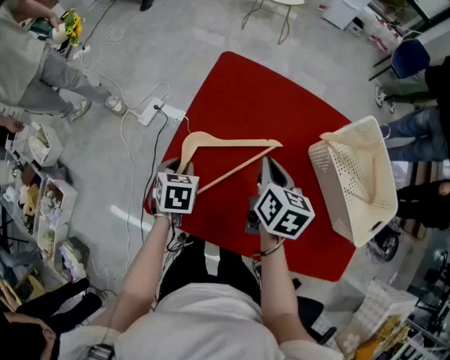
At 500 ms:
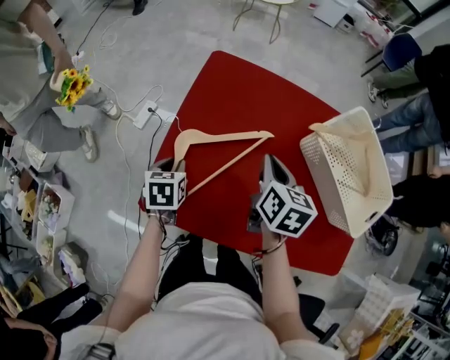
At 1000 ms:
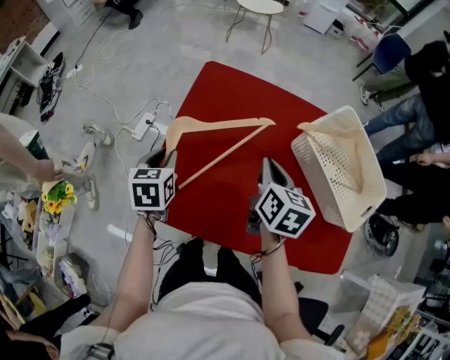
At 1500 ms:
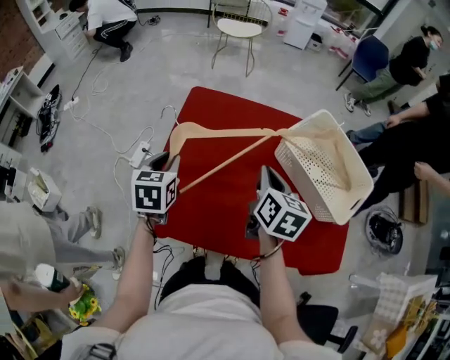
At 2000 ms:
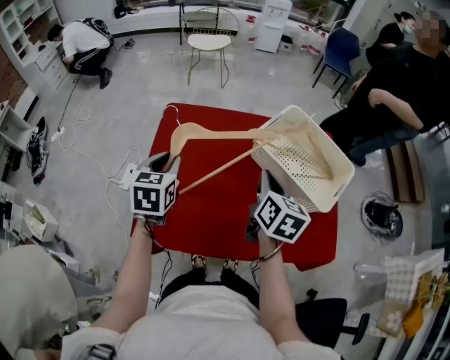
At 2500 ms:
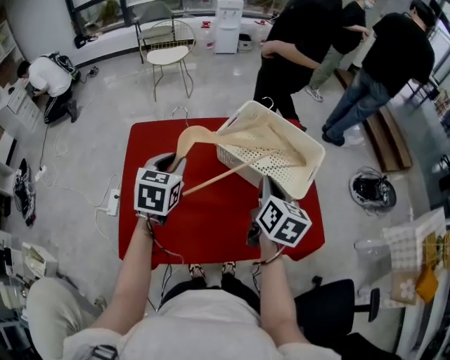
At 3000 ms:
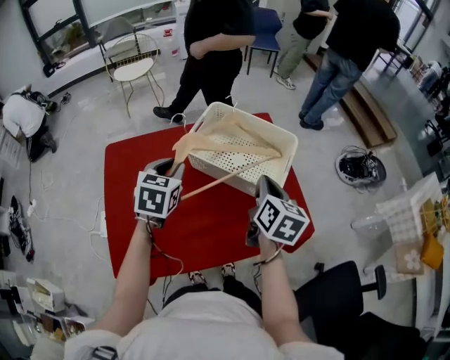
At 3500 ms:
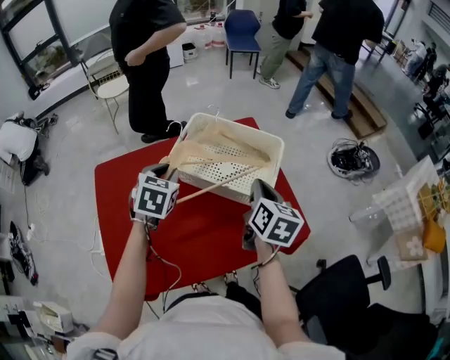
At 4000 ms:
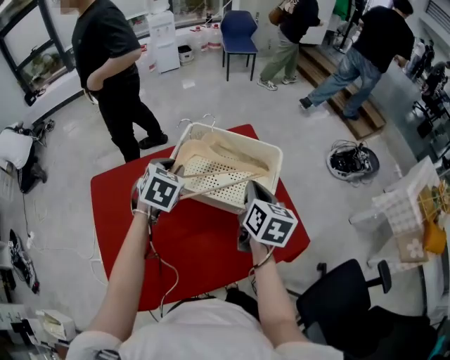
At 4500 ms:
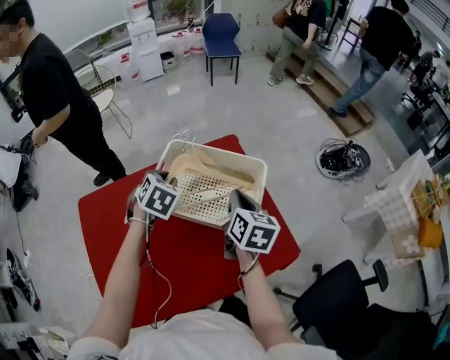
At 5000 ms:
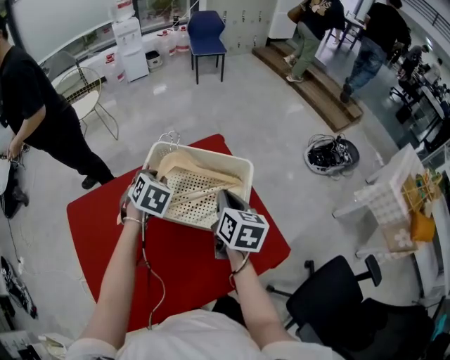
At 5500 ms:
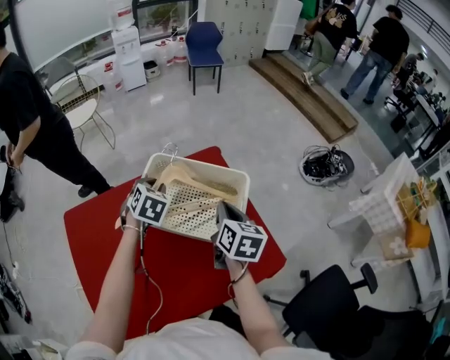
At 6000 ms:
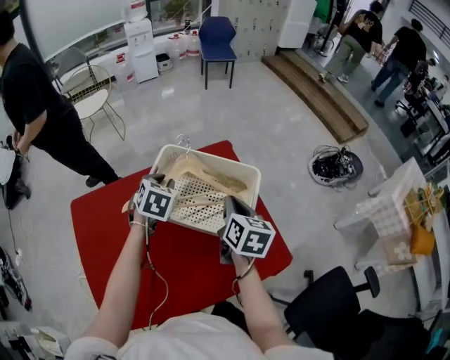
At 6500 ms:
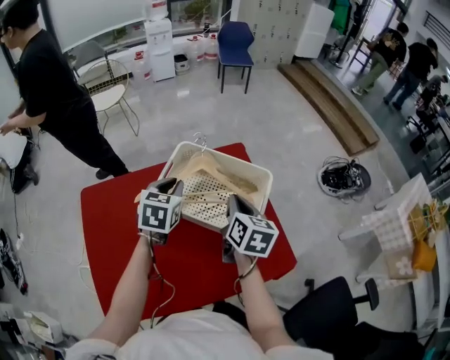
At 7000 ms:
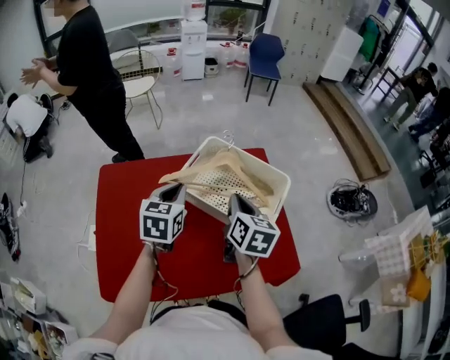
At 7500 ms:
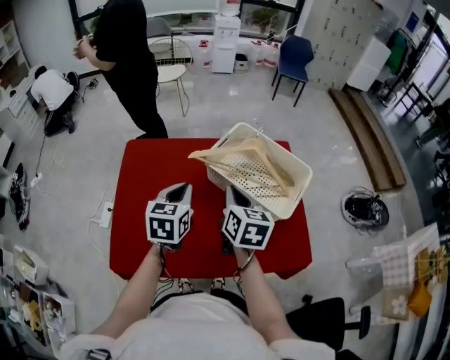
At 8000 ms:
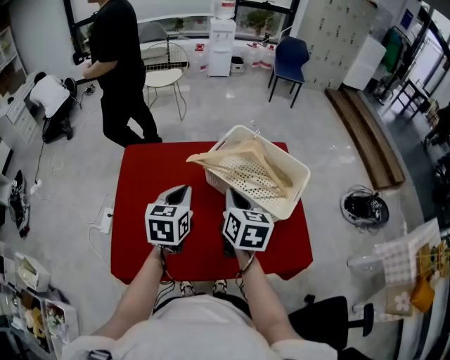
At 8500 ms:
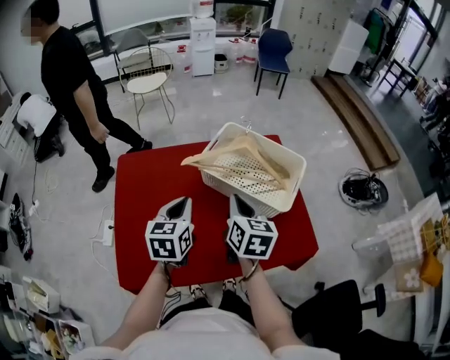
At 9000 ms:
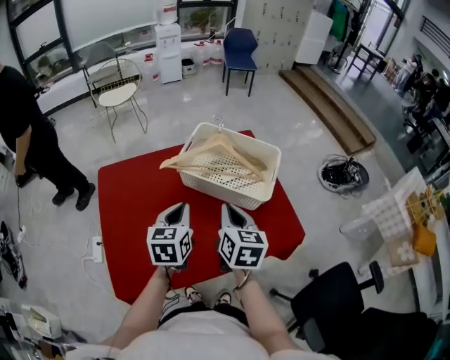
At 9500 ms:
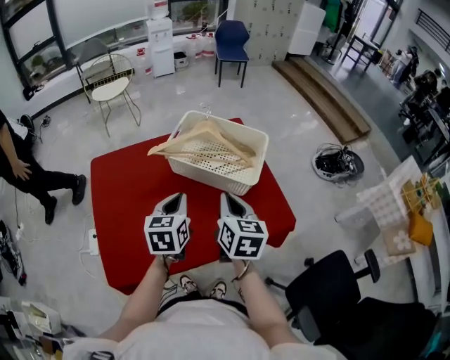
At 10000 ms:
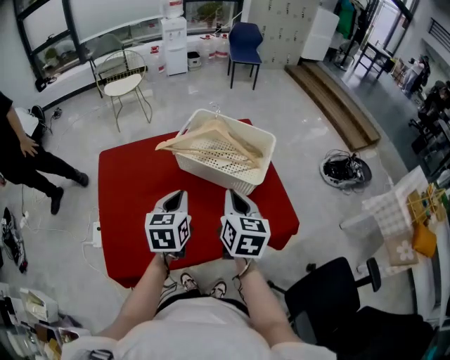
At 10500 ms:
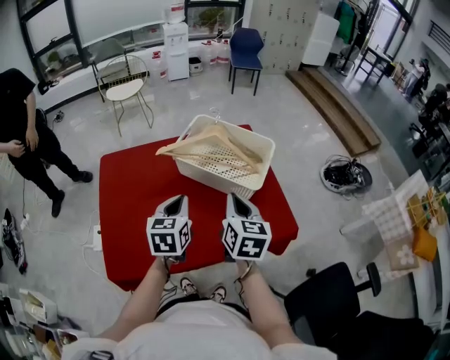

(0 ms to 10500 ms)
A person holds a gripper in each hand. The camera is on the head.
0 ms - 2000 ms: The left gripper heads upward and to the right, covering some 20 cm, and changes its angle by roughly 30 degrees. The right gripper moves to the right, upward and backward, approximately 20 cm, and changes its angle by approximately 20 degrees.
2000 ms - 4000 ms: The right gripper is displaced to the right by some 20 cm, and changes its angle by roughly 20 degrees. The left gripper goes some 30 cm to the right and forward, and rotates some 40 degrees.
6500 ms - 8500 ms: The left gripper heads backward and to the left, covering some 20 cm, and rotates roughly 20 degrees; the right gripper travels to the left and backward by some 20 cm.
8500 ms - 10500 ms: The left gripper moves to the right, about 10 cm. Meanwhile the right gripper moves to the right and backward, some 10 cm.

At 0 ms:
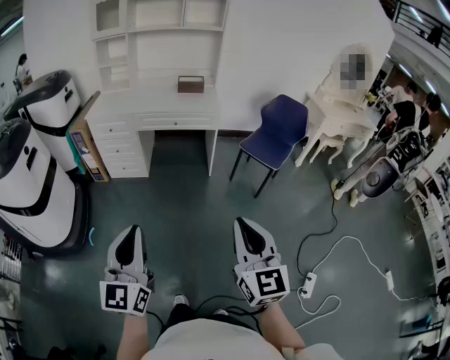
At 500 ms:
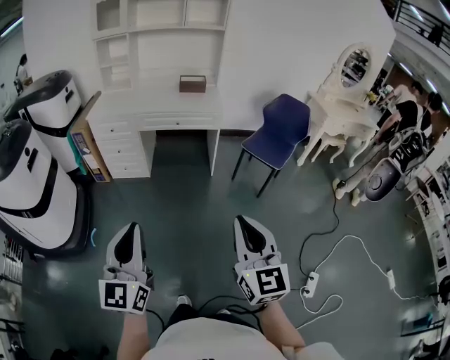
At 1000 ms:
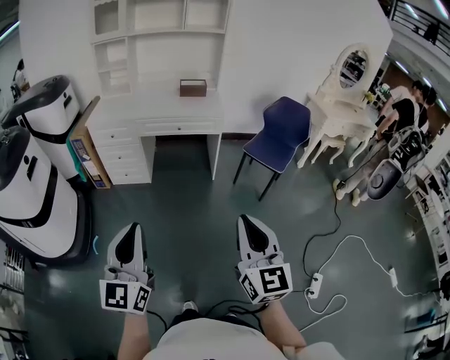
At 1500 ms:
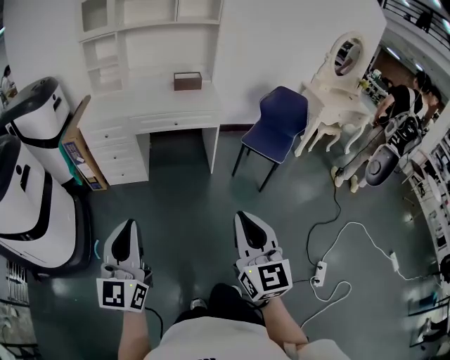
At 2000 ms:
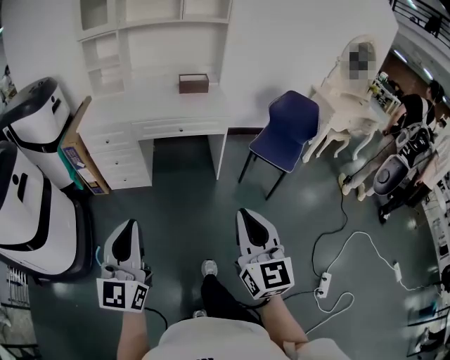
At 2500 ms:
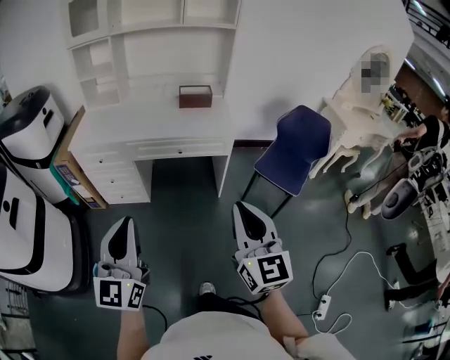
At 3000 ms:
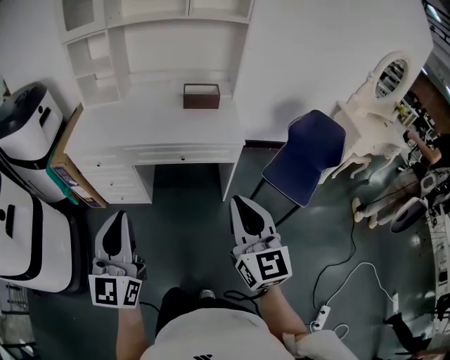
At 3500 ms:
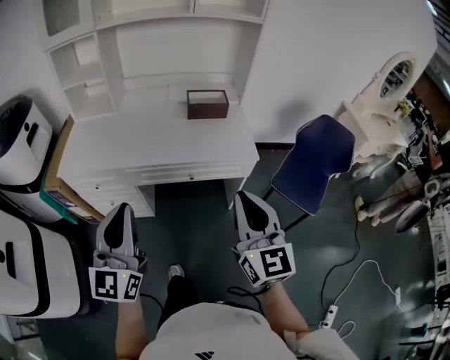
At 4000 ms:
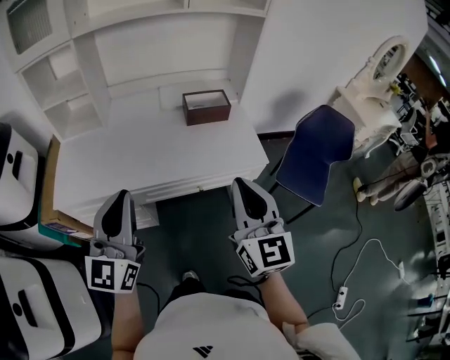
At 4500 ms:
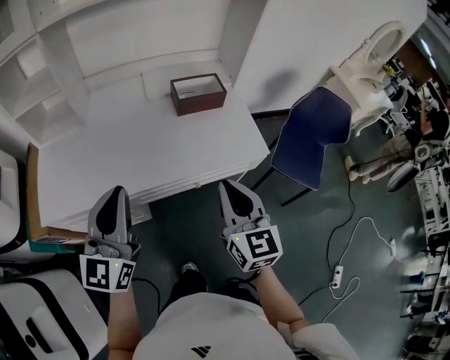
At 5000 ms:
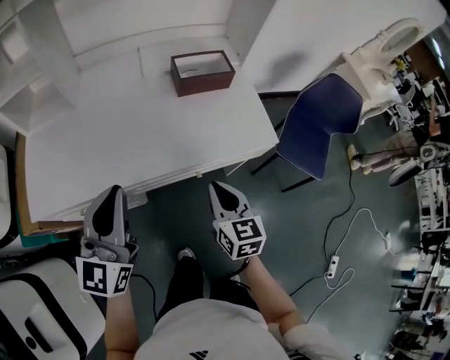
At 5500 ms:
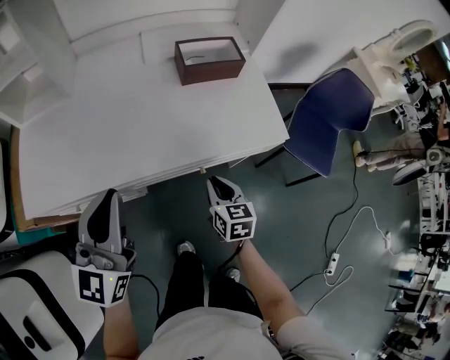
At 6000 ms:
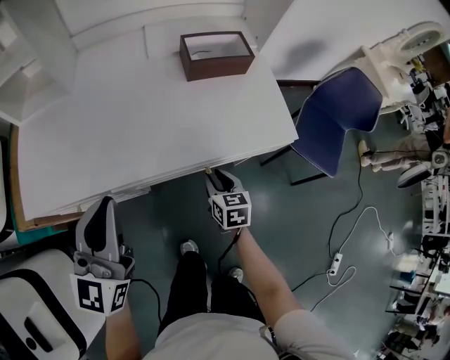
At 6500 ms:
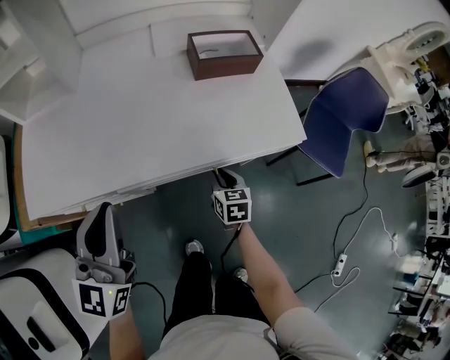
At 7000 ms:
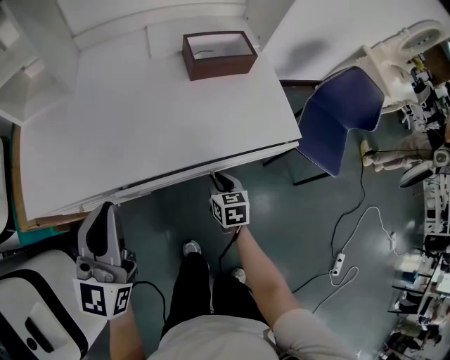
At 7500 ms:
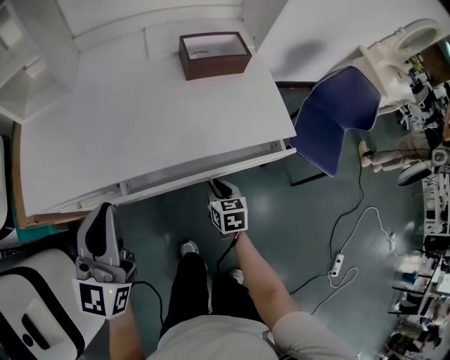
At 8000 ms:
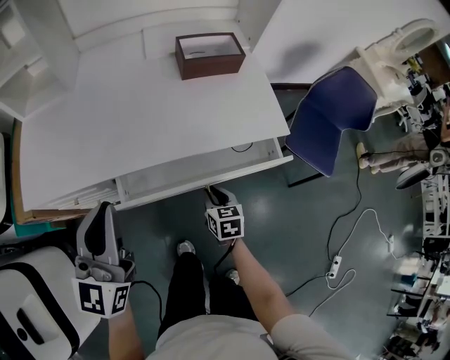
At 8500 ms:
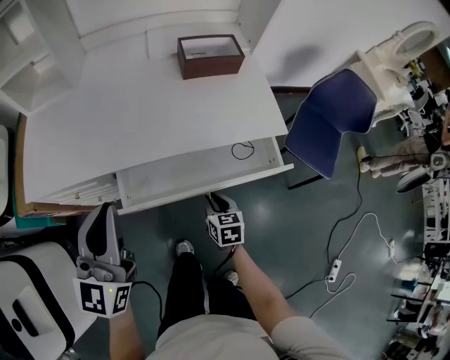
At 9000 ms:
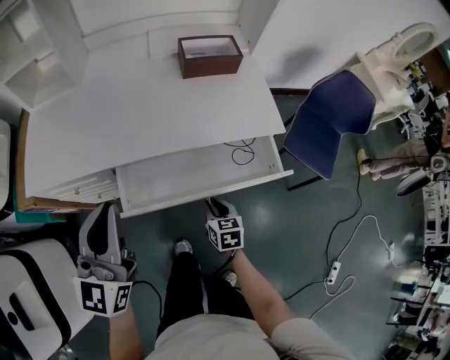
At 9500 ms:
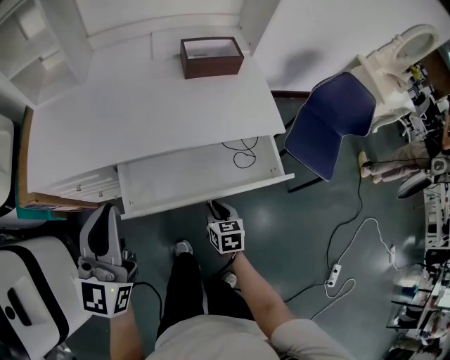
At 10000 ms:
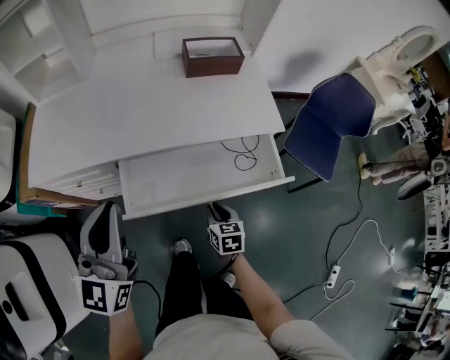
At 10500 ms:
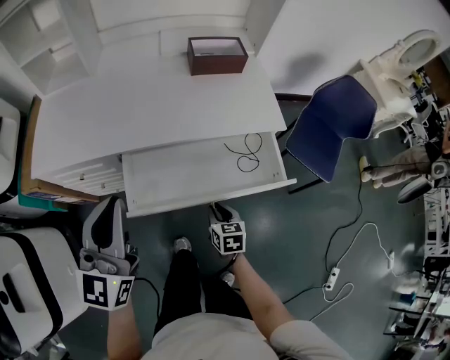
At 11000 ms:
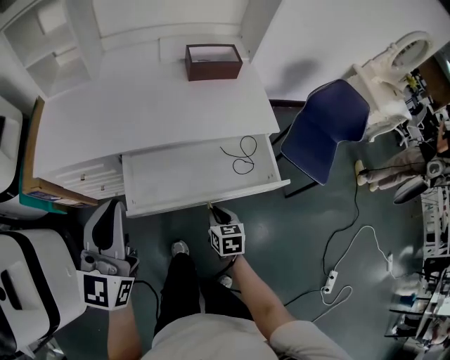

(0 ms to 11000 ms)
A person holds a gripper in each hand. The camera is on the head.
0 ms - 2000 ms: Both grippers travel together forward and to the left, some 20 cm.
2000 ms - 3500 ms: The pair of grippers is taken forward, roughly 40 cm.
3500 ms - 5500 ms: The right gripper shifts roughly 40 cm downward and forward, and tilts its fingers some 40 degrees downward. Meanwhile the left gripper goes some 25 cm forward and downward.
5500 ms - 7500 ms: The right gripper heads downward, covering some 10 cm.
7500 ms - 9000 ms: The left gripper heads backward, covering approximately 5 cm, while the right gripper heads backward, covering approximately 10 cm.
9000 ms - 11000 ms: The two grippers go approximately 5 cm backward.

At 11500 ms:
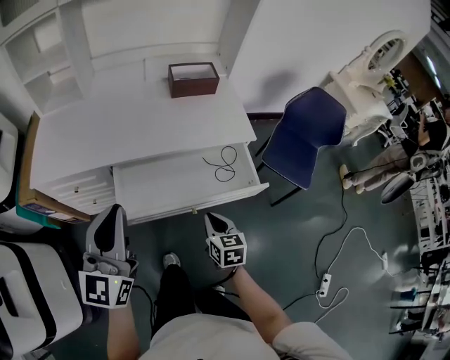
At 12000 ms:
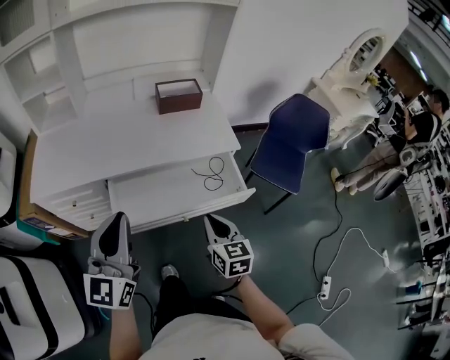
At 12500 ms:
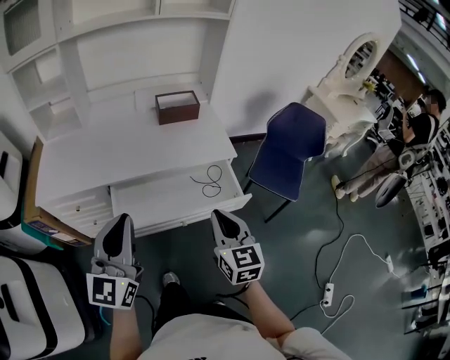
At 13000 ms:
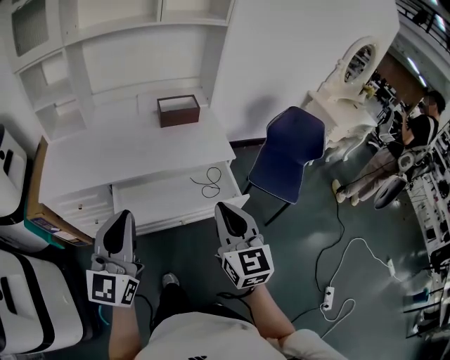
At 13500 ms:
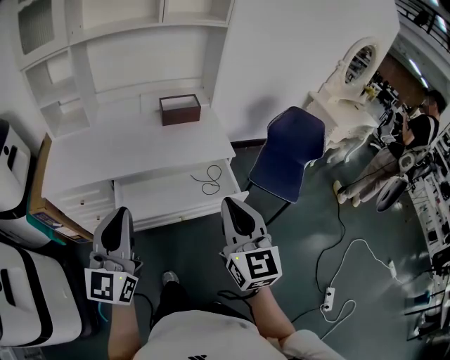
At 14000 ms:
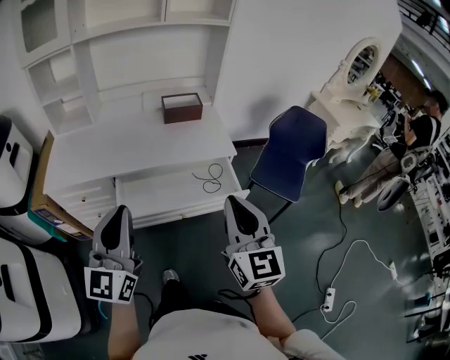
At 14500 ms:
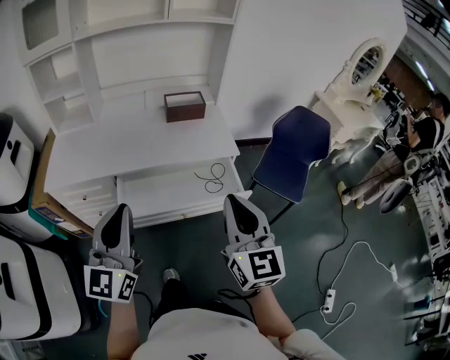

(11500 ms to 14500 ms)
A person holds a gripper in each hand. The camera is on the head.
11500 ms - 13000 ms: The right gripper is displaced upward by about 25 cm, and tips its fingers upward by approximately 30 degrees, while the left gripper is displaced to the right and upward by approximately 10 cm.
13000 ms - 14500 ms: The right gripper ends up some 5 cm from where it was.

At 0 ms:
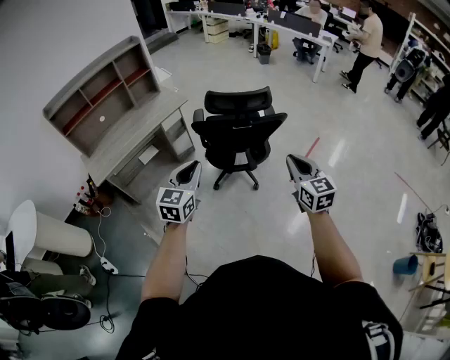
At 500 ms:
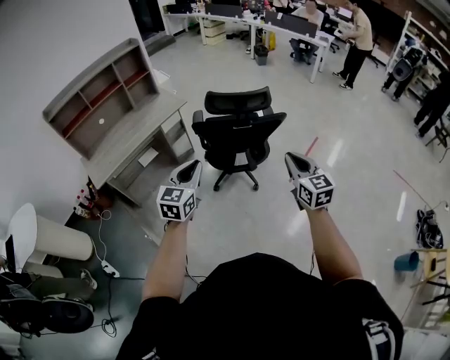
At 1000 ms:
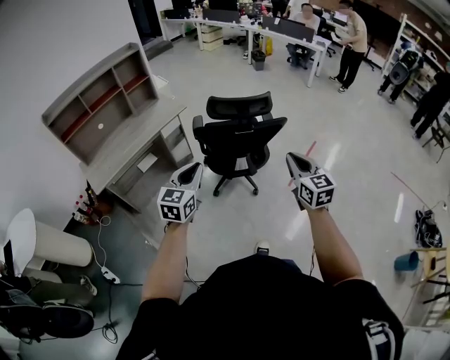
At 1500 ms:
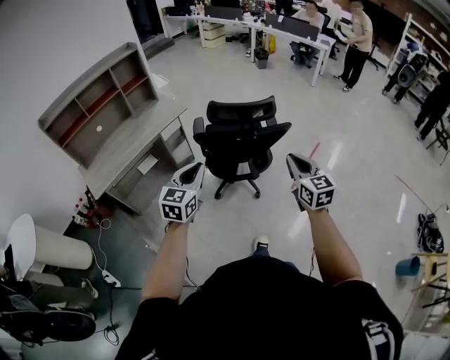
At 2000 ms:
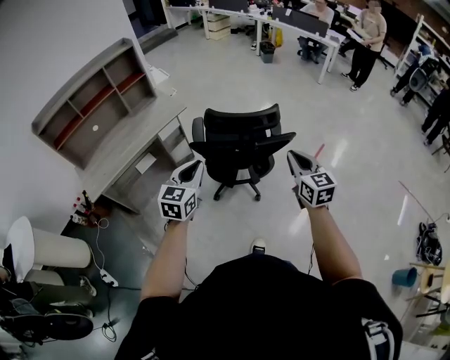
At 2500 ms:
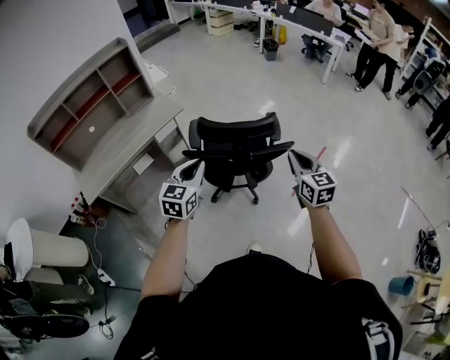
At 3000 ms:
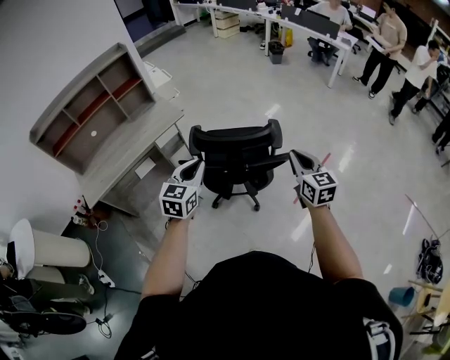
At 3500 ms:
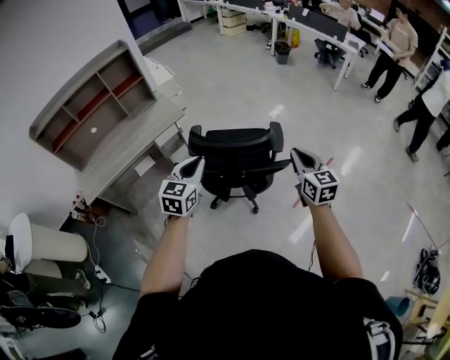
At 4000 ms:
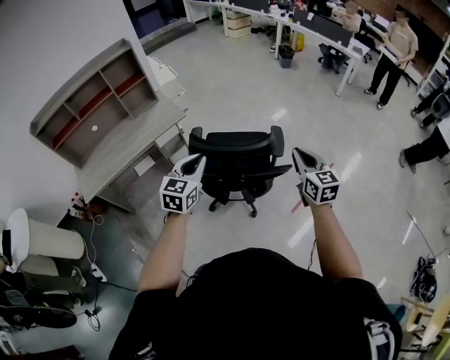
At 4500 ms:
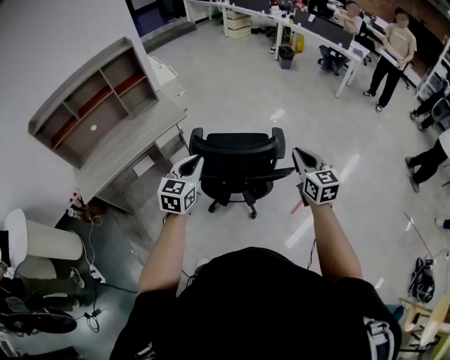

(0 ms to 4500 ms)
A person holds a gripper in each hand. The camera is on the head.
0 ms - 2000 ms: The grippers both shift forward by roughly 15 cm.
2000 ms - 4500 ms: Both grippers move forward, about 20 cm.
